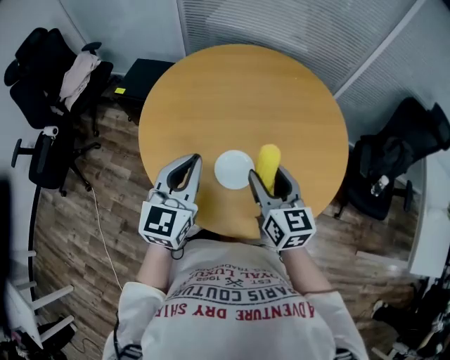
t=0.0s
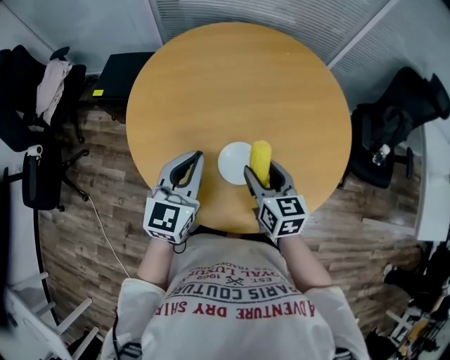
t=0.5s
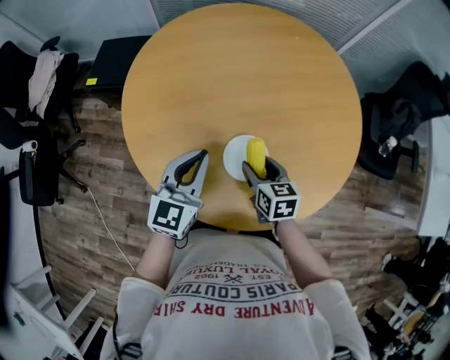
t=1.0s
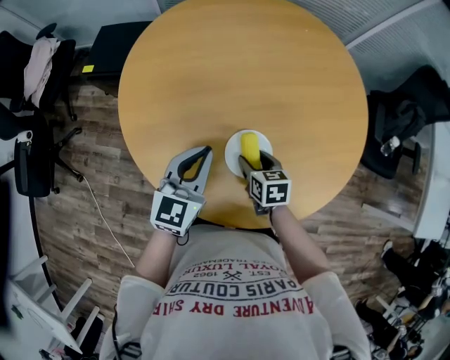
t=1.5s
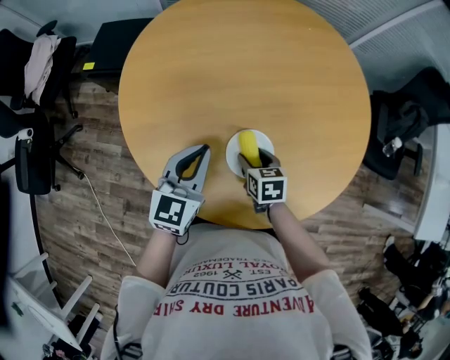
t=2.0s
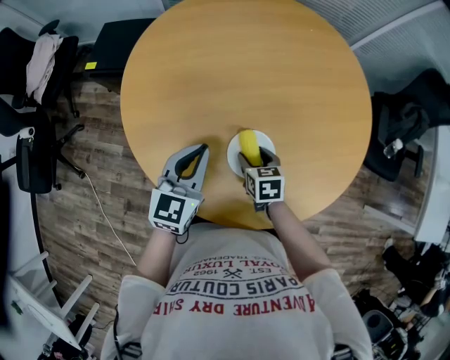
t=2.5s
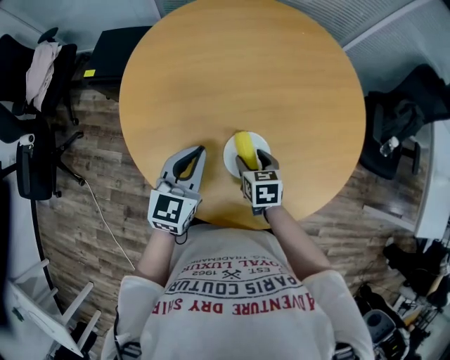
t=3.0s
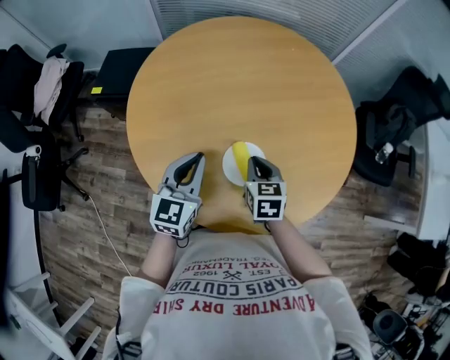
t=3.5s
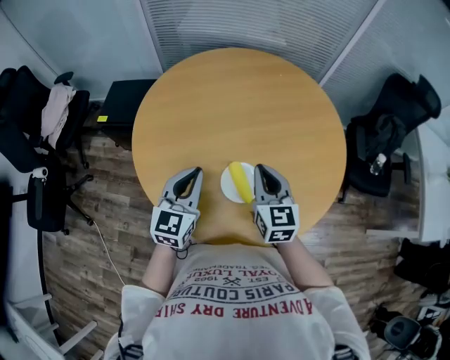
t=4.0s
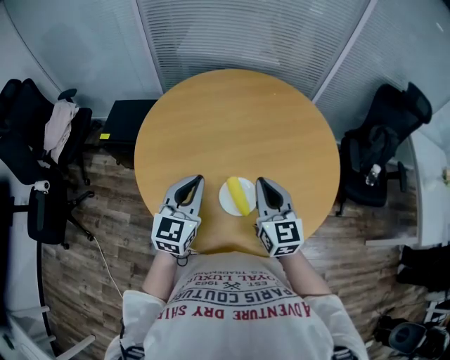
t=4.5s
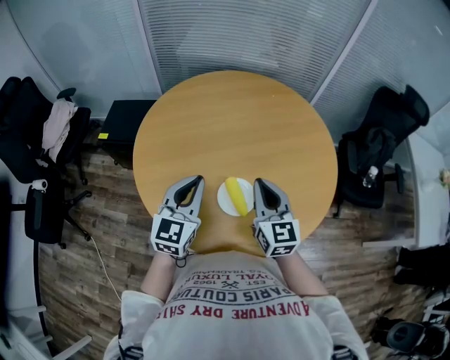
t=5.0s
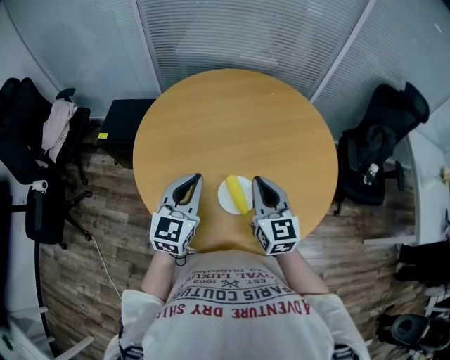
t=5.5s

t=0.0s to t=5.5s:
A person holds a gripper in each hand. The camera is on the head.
t=0.0s to t=2.0s: The left gripper travels downward and forward by some 15 cm; the right gripper shifts approximately 25 cm downward, and angles its fingers downward, by approximately 40 degrees.
t=2.0s to t=3.5s: The right gripper shifts roughly 10 cm upward, and closes.
t=3.5s to t=5.5s: The left gripper goes some 10 cm upward. The right gripper shifts some 15 cm upward, and tilts its fingers approximately 30 degrees upward.

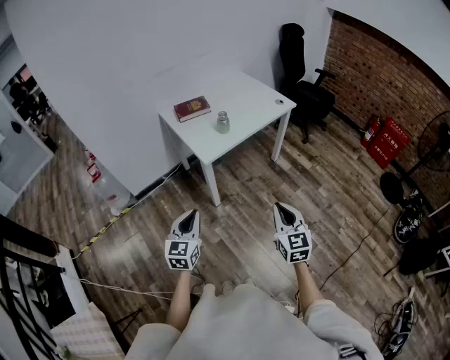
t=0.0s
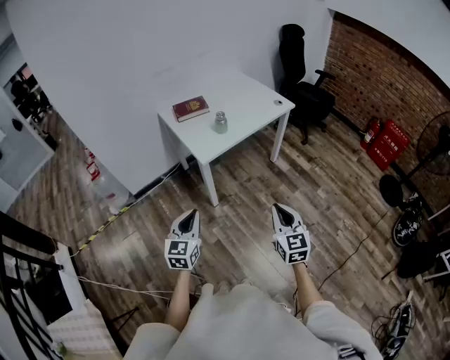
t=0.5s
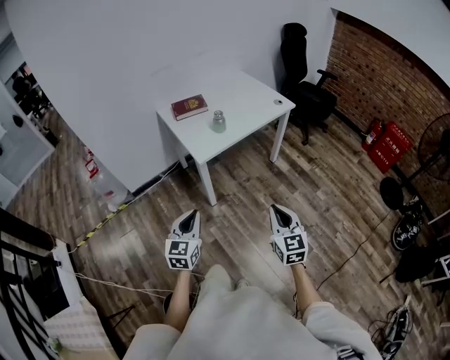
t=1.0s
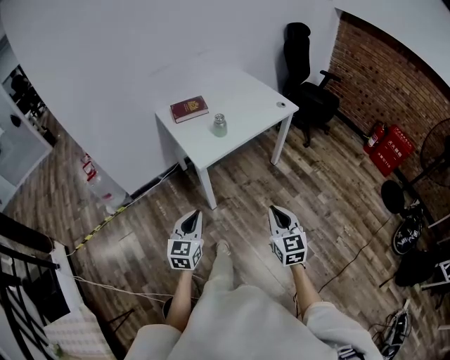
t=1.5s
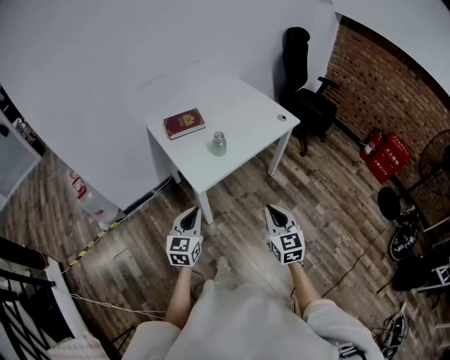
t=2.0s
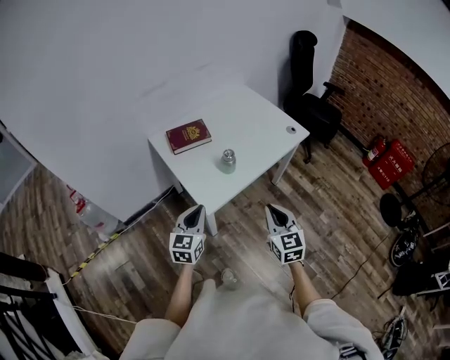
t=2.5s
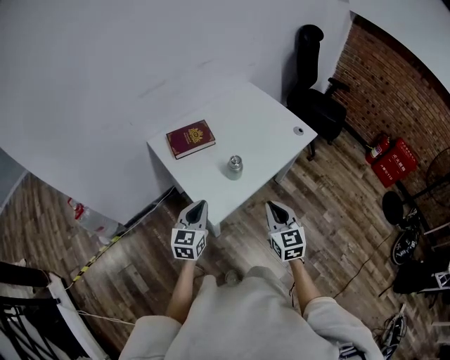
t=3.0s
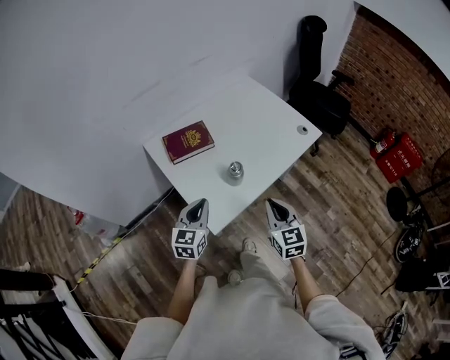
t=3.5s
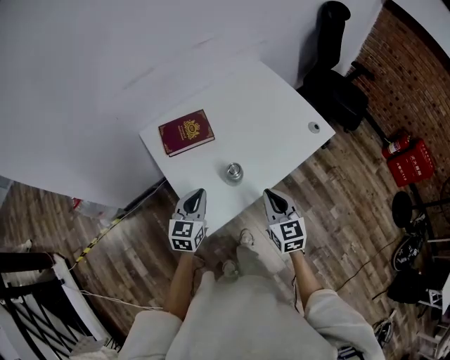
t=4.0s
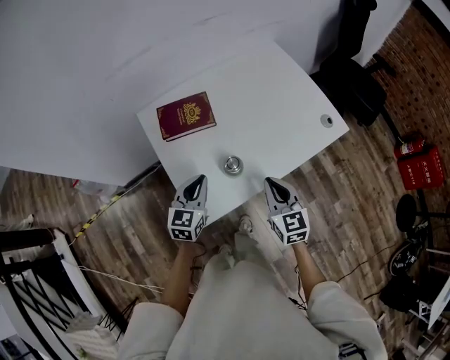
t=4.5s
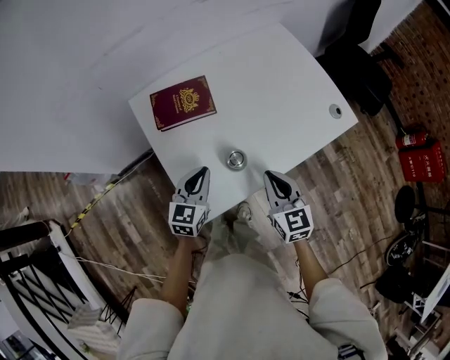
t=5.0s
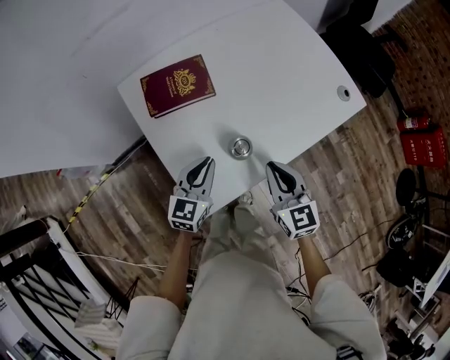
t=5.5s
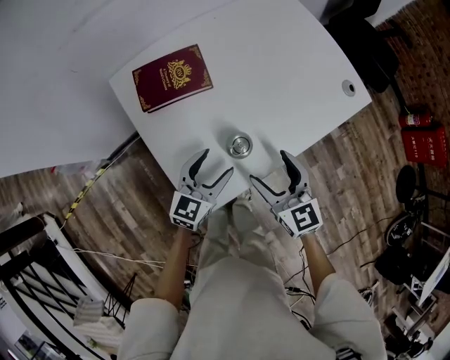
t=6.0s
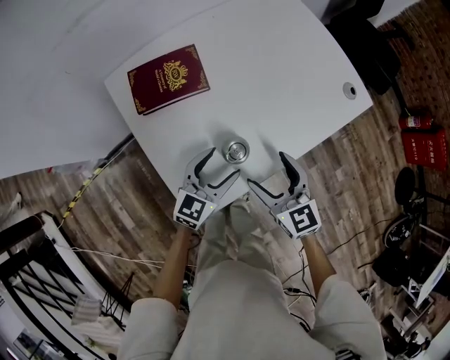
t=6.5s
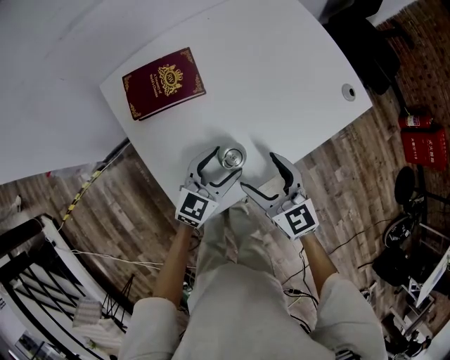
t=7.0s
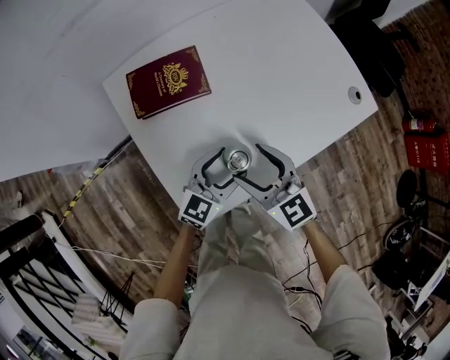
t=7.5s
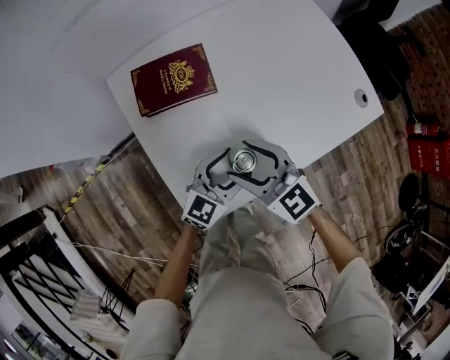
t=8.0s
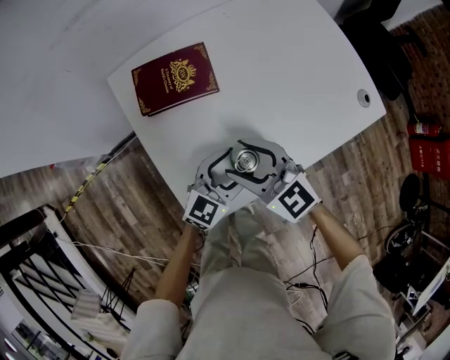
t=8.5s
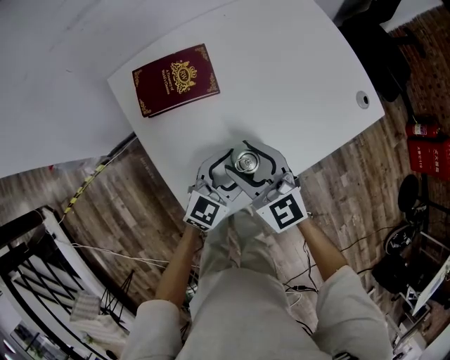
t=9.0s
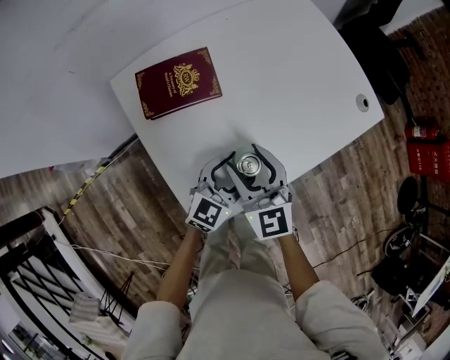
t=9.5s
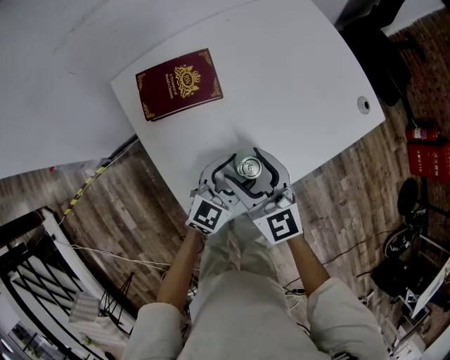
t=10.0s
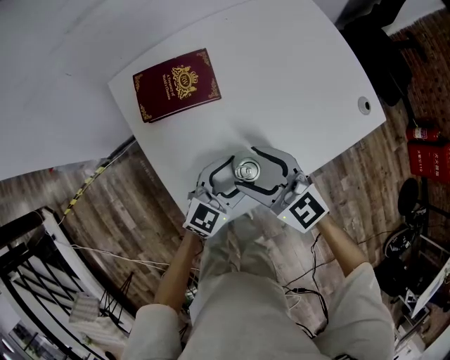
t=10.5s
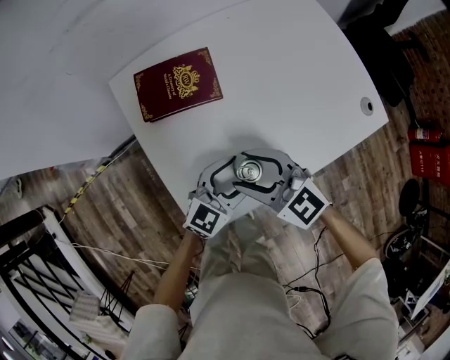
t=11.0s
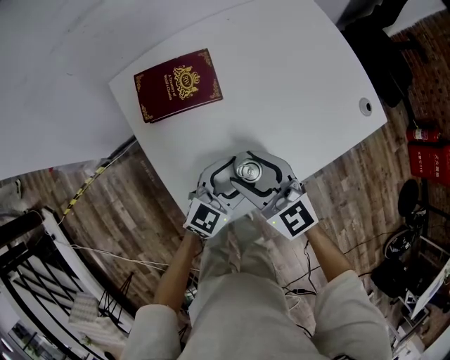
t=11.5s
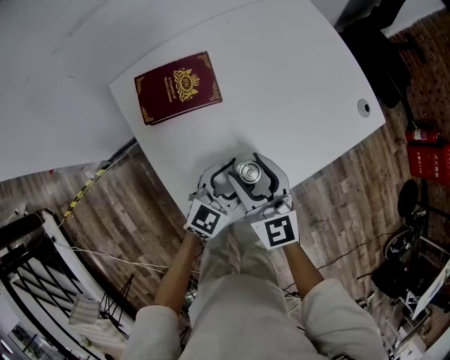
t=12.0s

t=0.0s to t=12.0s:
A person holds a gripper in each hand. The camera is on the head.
t=0.0s to t=2.0s: The grippers both shift forward by approximately 20 cm.
t=2.0s to t=4.0s: Both grippers move forward, roughly 35 cm.
t=4.0s to t=6.0s: The left gripper shifts roughly 15 cm downward and to the right, and opens. Meanwhile the right gripper is displaced downward and forward by roughly 10 cm, and opens its fingers.
t=6.0s to t=8.0s: The left gripper moves some 5 cm; the right gripper is displaced to the left and forward by roughly 10 cm, and rotates approximately 30 degrees.
t=8.0s to t=10.0s: The right gripper rotates some 20 degrees.

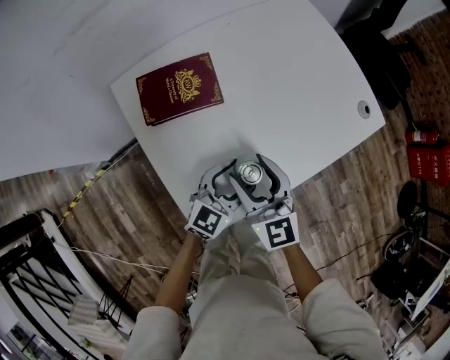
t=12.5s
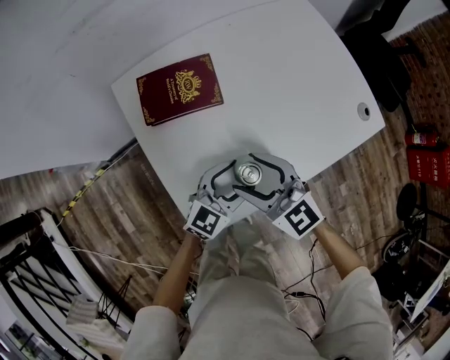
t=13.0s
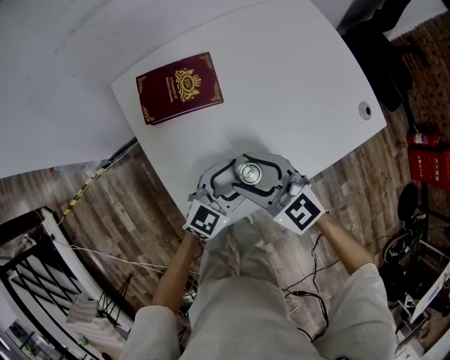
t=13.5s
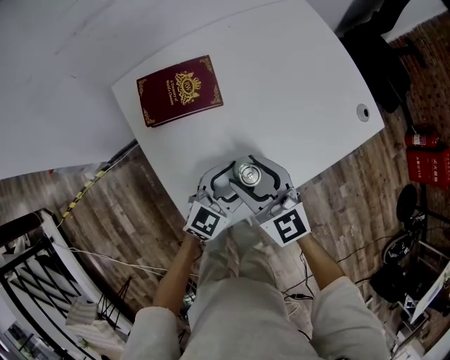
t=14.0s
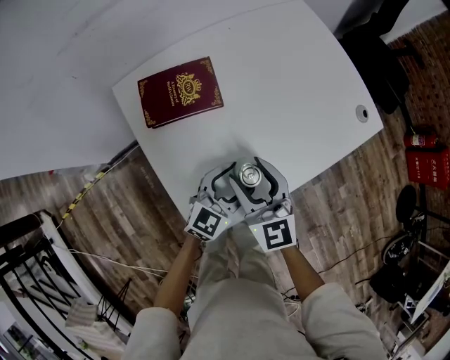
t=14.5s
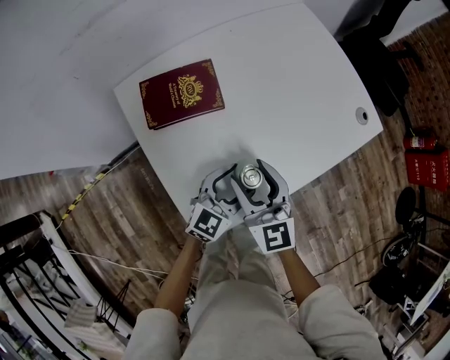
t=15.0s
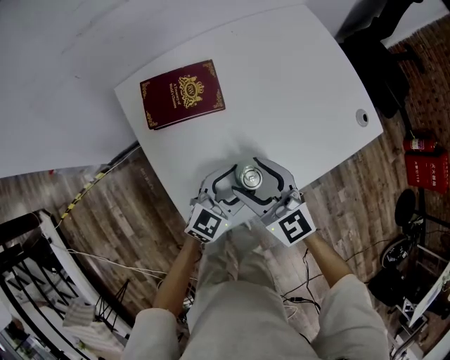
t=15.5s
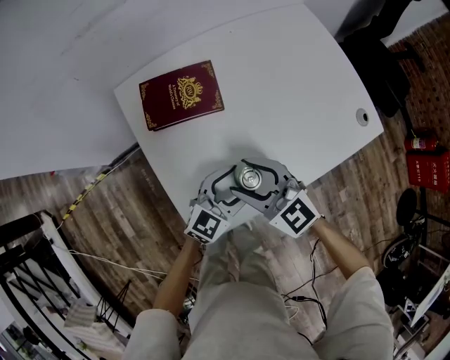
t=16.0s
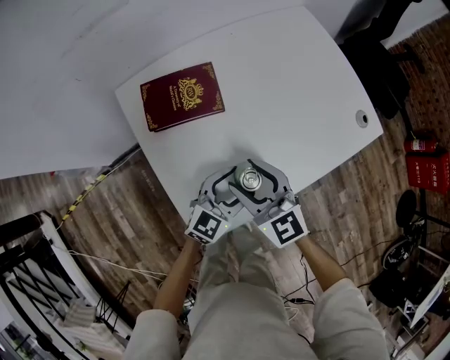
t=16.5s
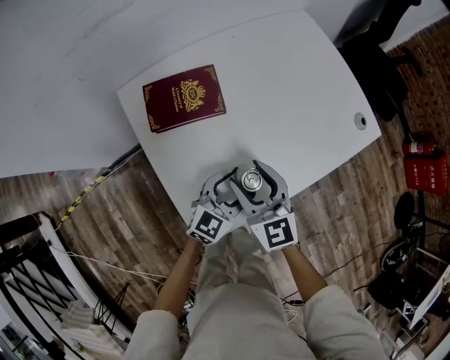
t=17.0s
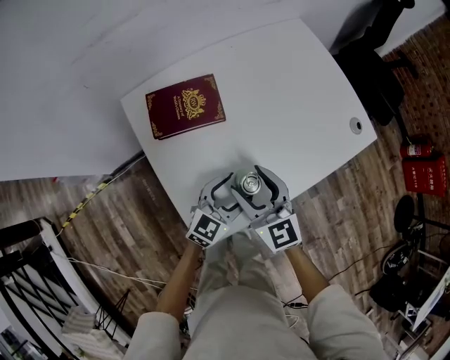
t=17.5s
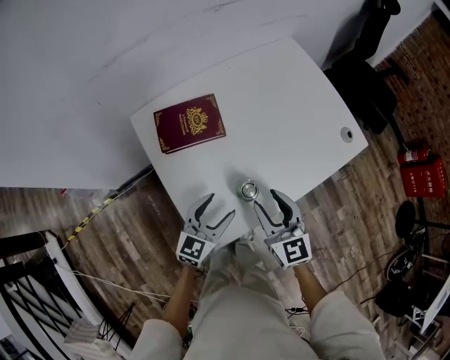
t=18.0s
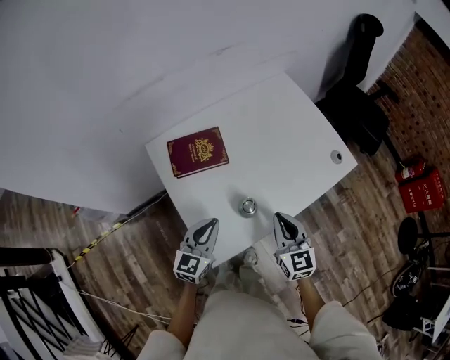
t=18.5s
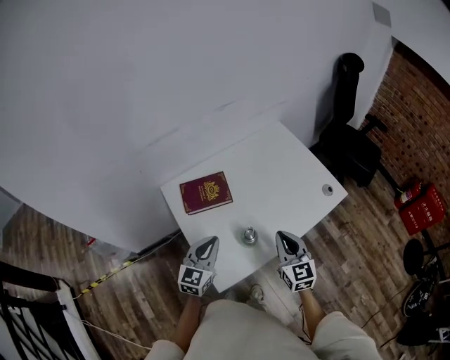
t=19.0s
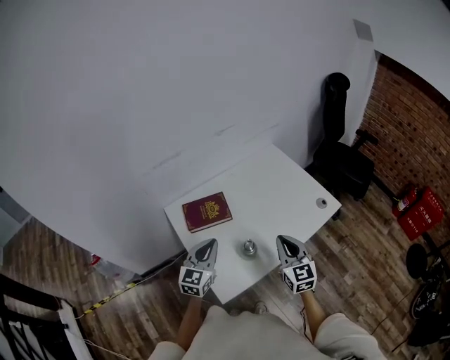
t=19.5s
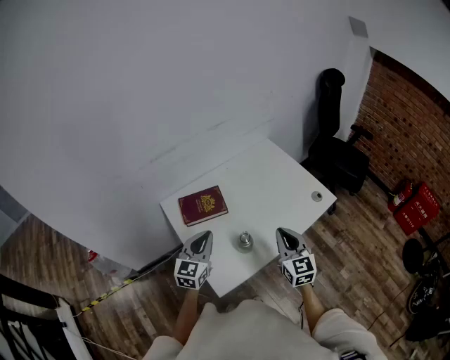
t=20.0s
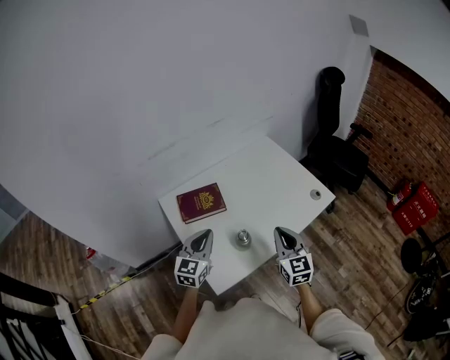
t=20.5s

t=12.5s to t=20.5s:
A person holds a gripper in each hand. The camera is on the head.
t=16.5s to t=18.5s: The right gripper shifts approximately 15 cm to the right and upward, changes its angle by approximately 30 degrees, and closes; the left gripper goes some 15 cm upward and to the left, and closes.
t=18.5s to t=20.5s: The grippers both shift upward by approximately 10 cm.

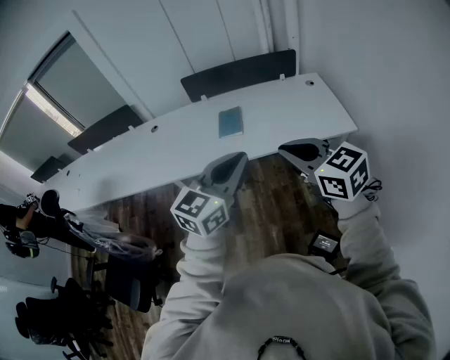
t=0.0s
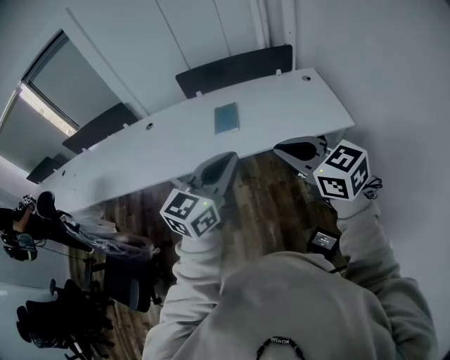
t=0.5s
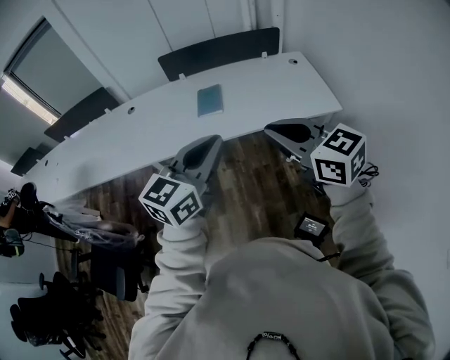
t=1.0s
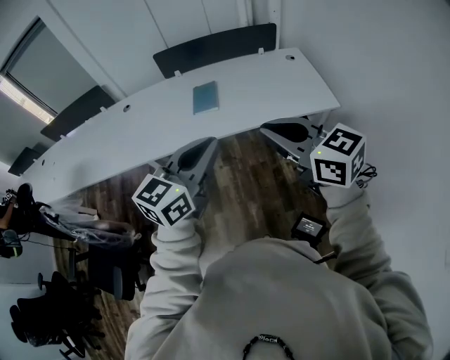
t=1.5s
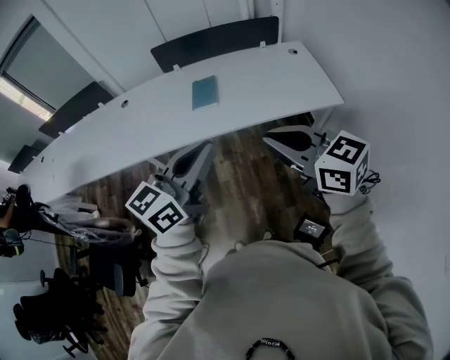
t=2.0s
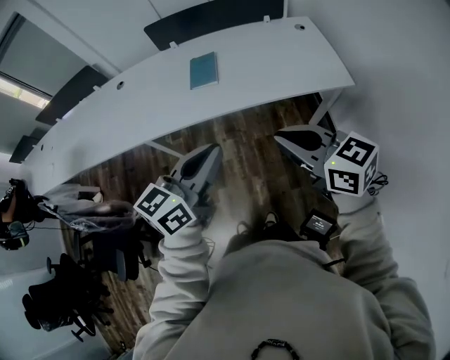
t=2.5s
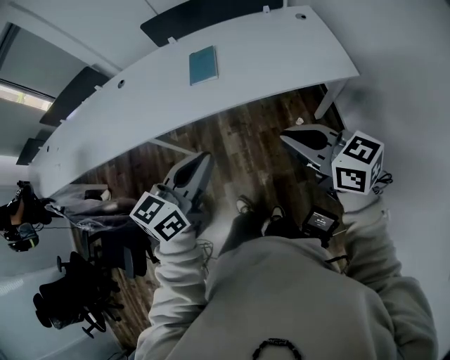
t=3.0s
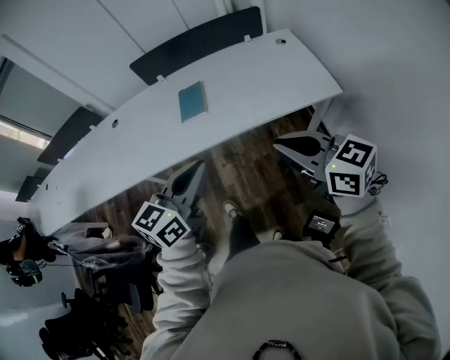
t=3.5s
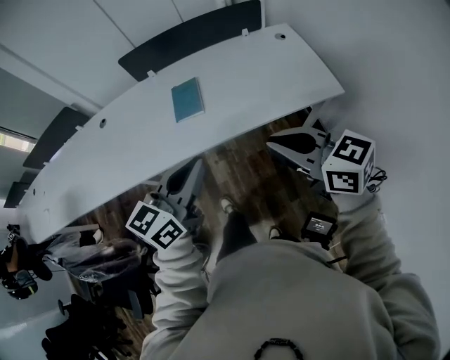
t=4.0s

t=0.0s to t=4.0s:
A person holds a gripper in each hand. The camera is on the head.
t=0.0s to t=2.0s: The grippers stay close to where they were, moving slightly.
t=2.0s to t=4.0s: The grippers both shift forward and downward by some 15 cm.
